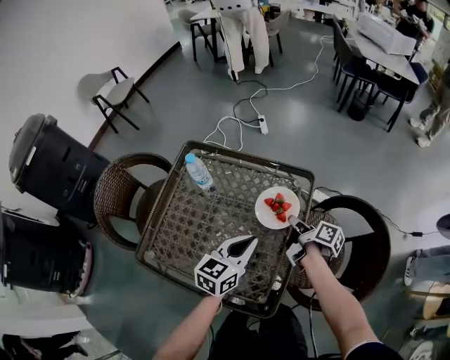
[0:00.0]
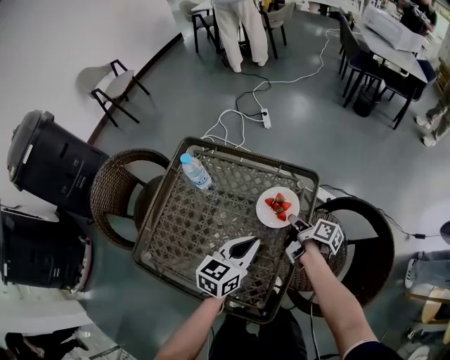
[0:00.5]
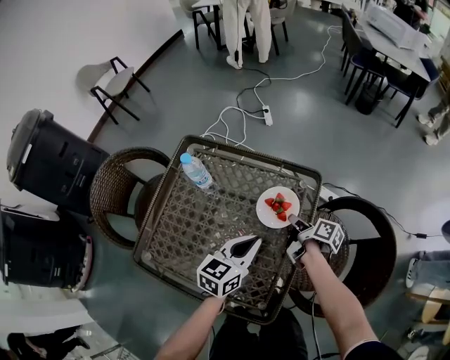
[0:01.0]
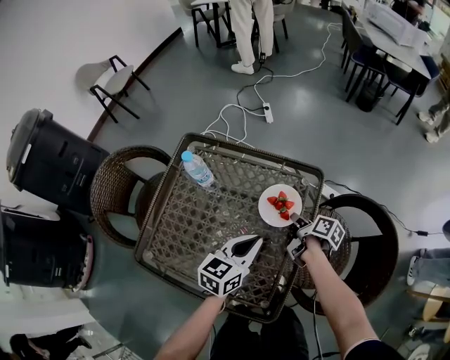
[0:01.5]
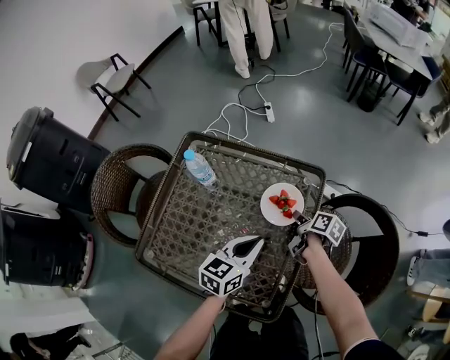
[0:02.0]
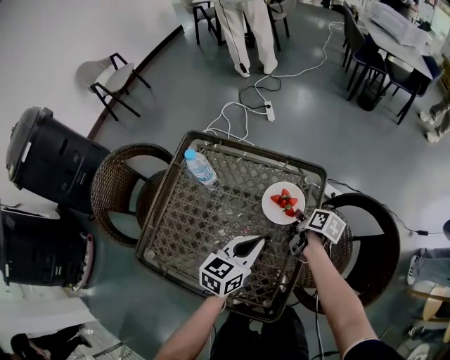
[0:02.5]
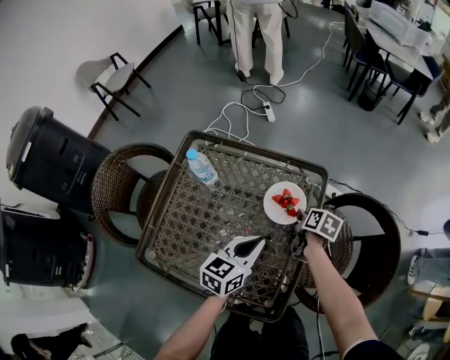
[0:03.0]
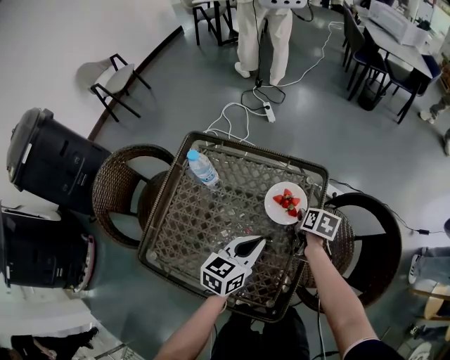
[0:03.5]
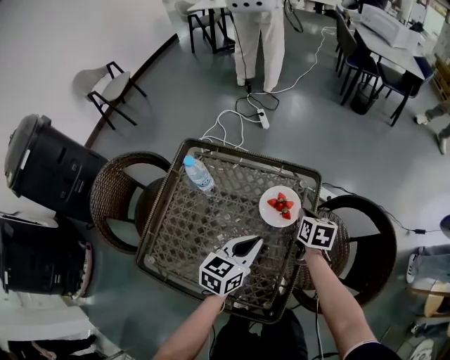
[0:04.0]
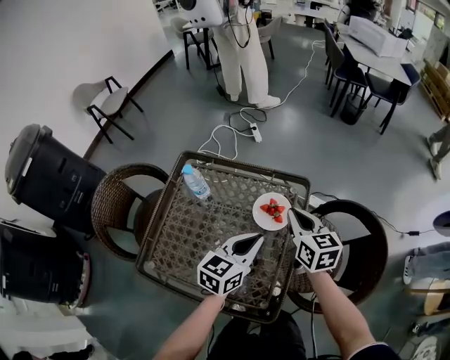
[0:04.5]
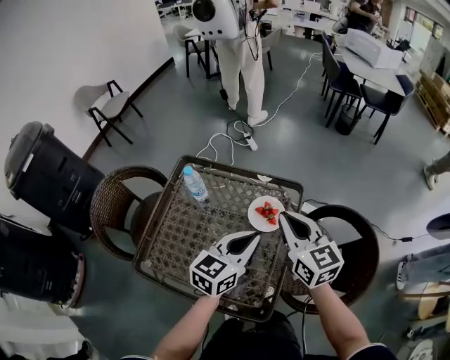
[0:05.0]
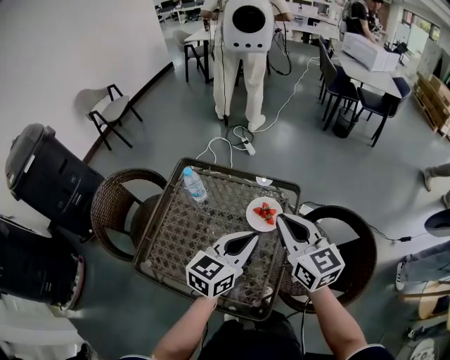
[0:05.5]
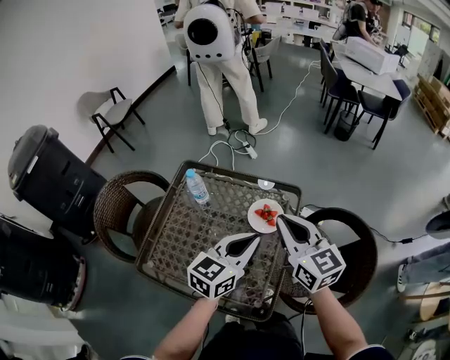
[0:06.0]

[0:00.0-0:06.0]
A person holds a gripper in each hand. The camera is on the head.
0:00.0 to 0:02.0: The right gripper heads downward, covering about 5 cm.
0:02.0 to 0:04.0: The right gripper travels upward by roughly 5 cm, and swivels approximately 40 degrees.
0:04.0 to 0:06.0: The left gripper heads upward, covering roughly 15 cm. Meanwhile the right gripper goes roughly 30 cm upward, and tips its fingers upward by some 40 degrees.

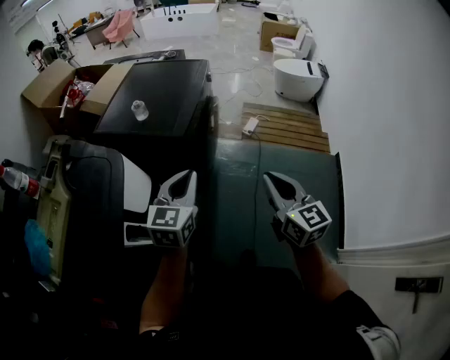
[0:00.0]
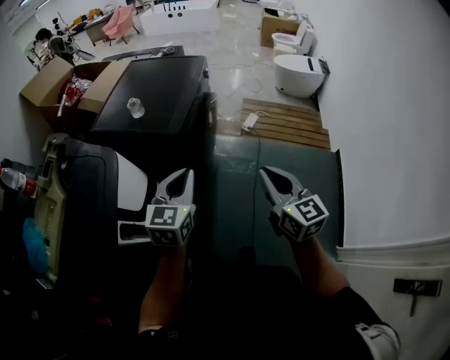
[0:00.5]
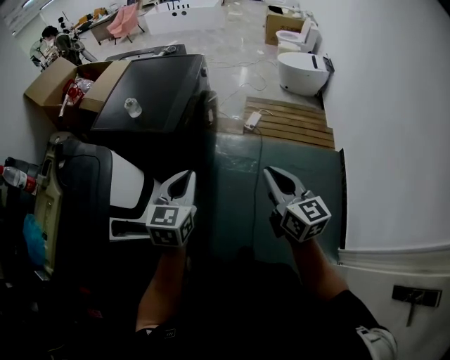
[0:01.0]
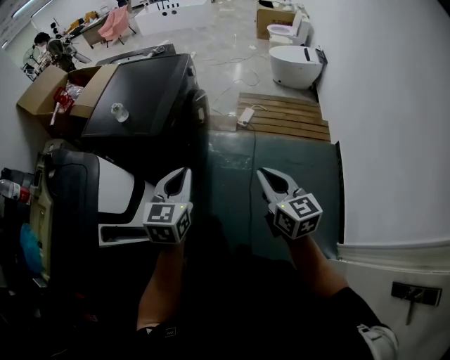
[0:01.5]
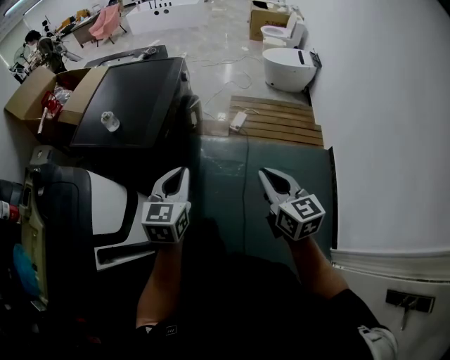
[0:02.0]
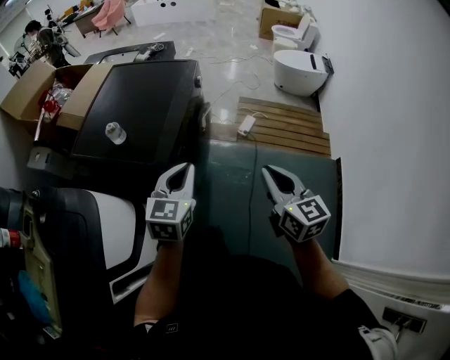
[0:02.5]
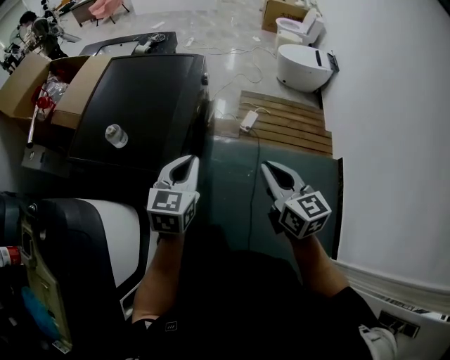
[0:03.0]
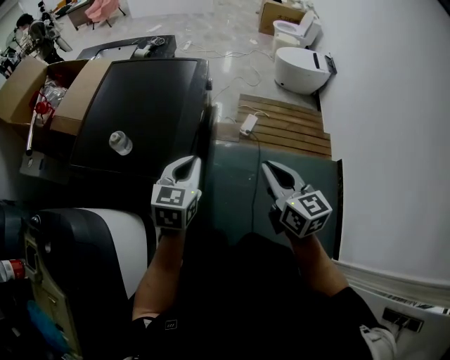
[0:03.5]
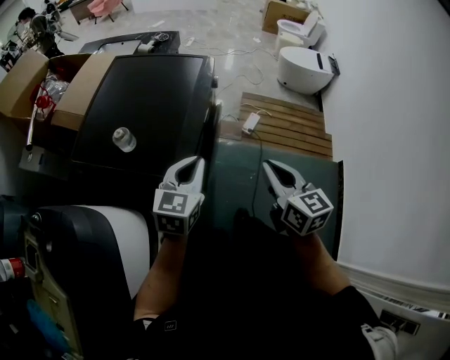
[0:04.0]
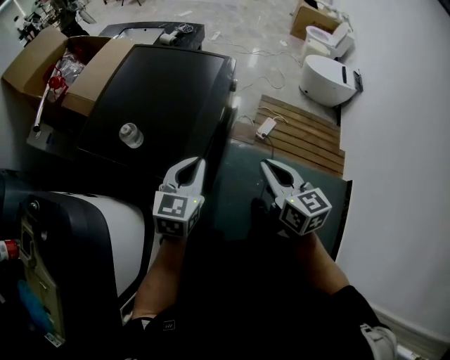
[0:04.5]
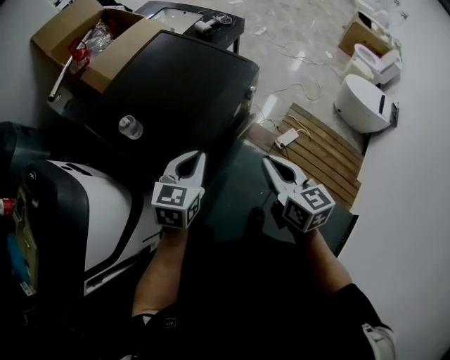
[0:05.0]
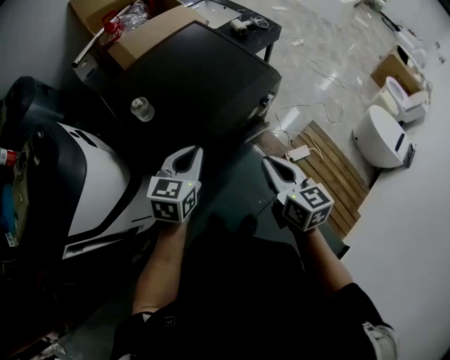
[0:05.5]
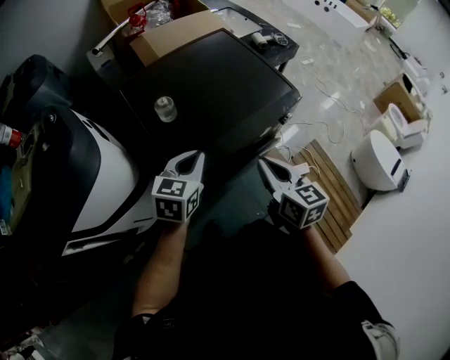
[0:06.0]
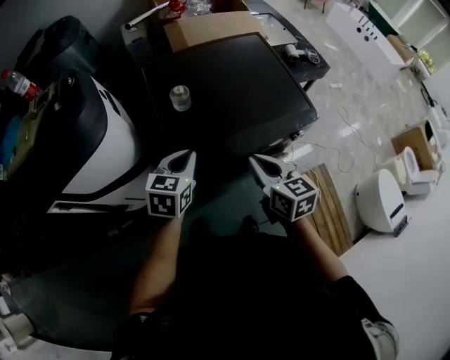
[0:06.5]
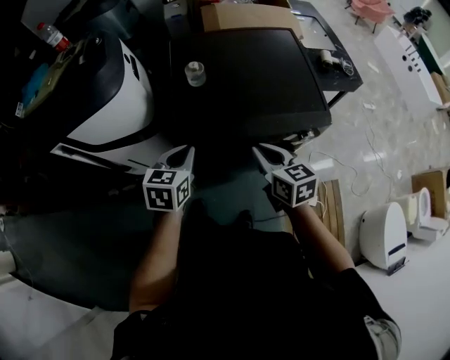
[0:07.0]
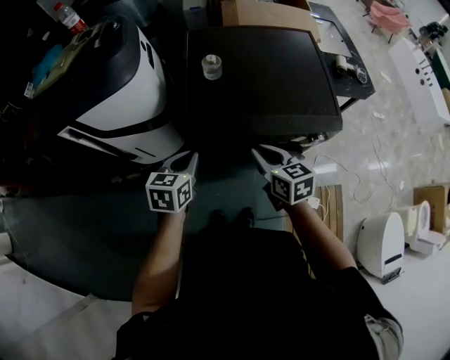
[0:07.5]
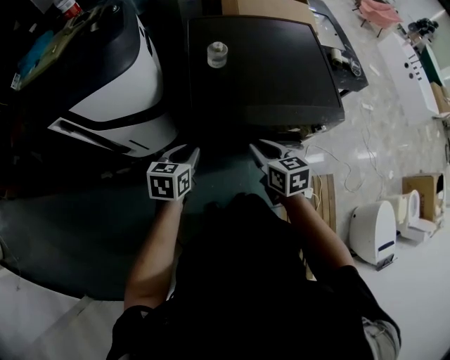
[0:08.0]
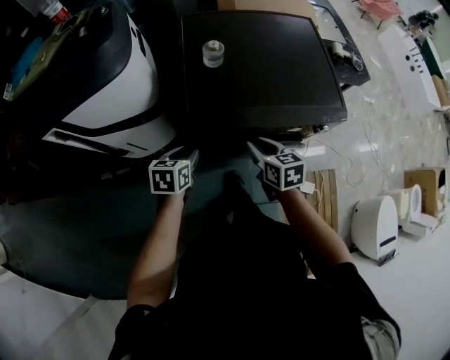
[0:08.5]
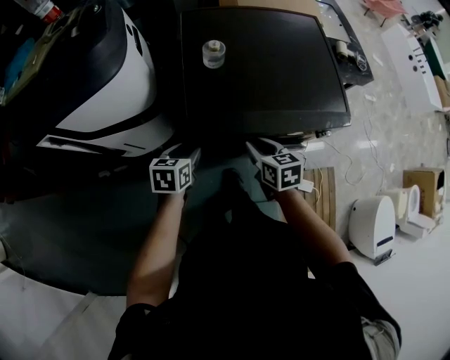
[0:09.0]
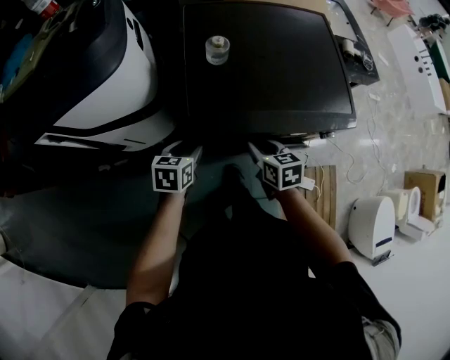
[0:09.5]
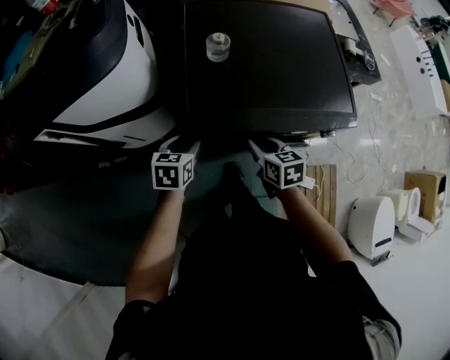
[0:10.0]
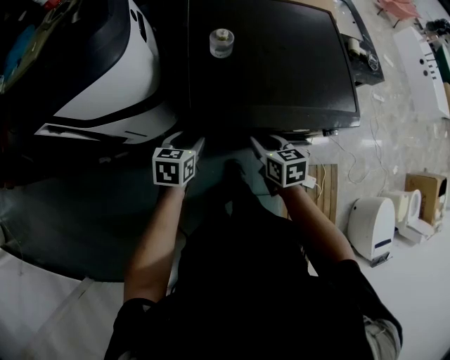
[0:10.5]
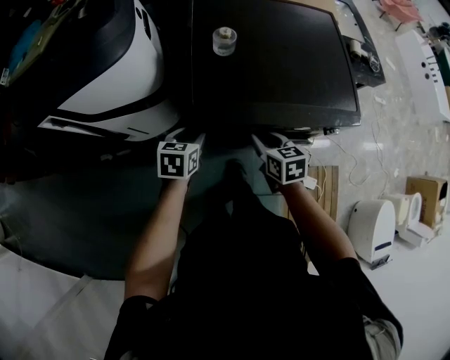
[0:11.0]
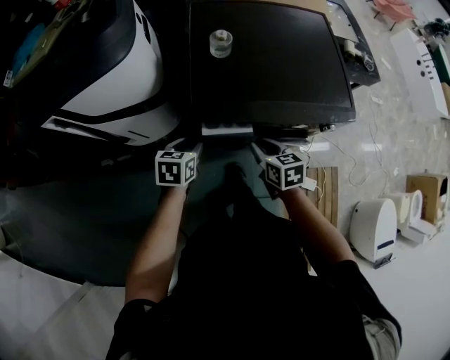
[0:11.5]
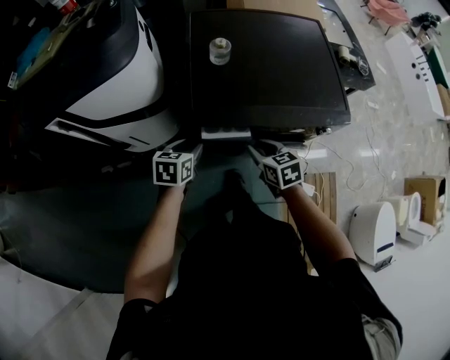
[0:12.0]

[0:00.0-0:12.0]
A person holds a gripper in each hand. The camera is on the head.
0:00.0 to 0:02.0: The right gripper travels to the right, forward and downward by about 15 cm. Meanwhile the left gripper is displaced to the right and forward by approximately 15 cm.
0:02.0 to 0:04.0: Both grippers move forward and to the left, some 25 cm.
0:04.0 to 0:06.0: The left gripper changes place by some 10 cm, and rotates approximately 40 degrees, while the right gripper changes place by approximately 20 cm, and turns by roughly 50 degrees.
0:06.0 to 0:08.0: The right gripper shifts roughly 10 cm downward, and swivels some 40 degrees. Meanwhile the left gripper shifts by approximately 15 cm, and rotates approximately 40 degrees.
0:08.0 to 0:10.0: The right gripper heads downward and forward, covering about 10 cm, while the left gripper is displaced forward and downward by about 10 cm, and opens its fingers.
0:10.0 to 0:12.0: The grippers make only small movements.

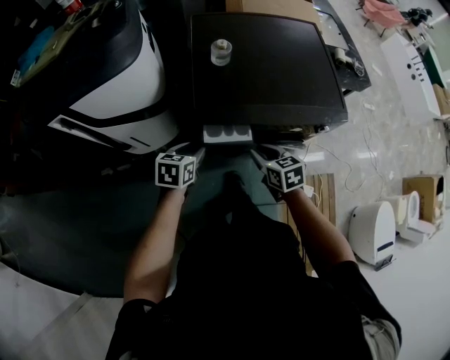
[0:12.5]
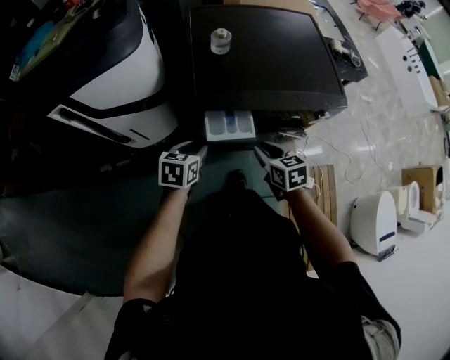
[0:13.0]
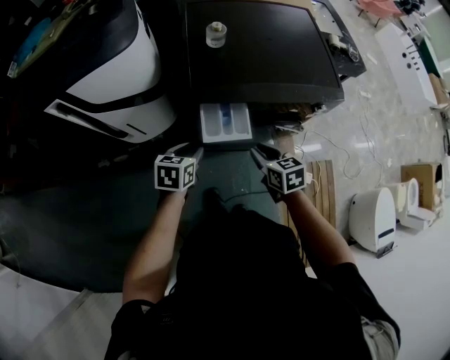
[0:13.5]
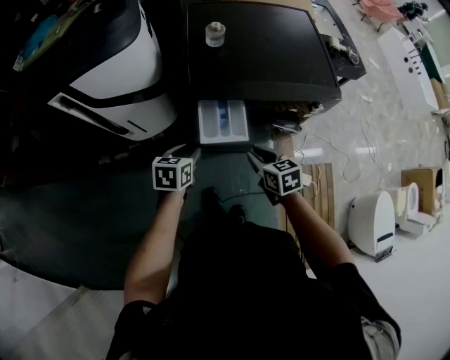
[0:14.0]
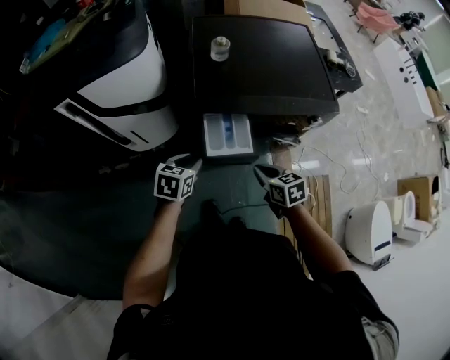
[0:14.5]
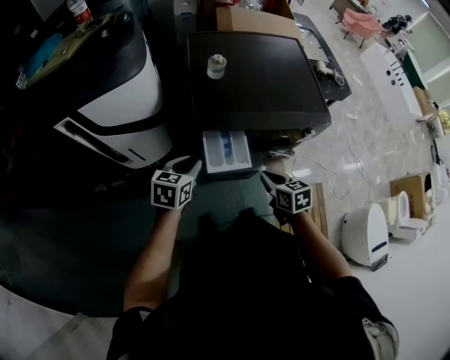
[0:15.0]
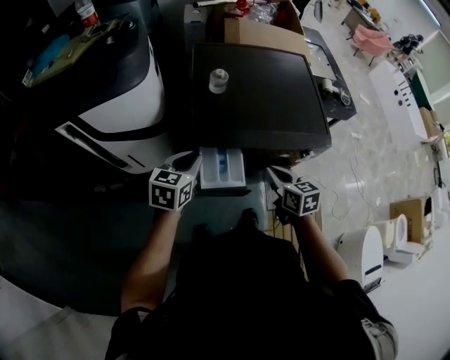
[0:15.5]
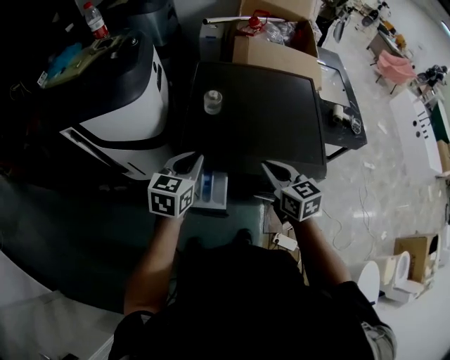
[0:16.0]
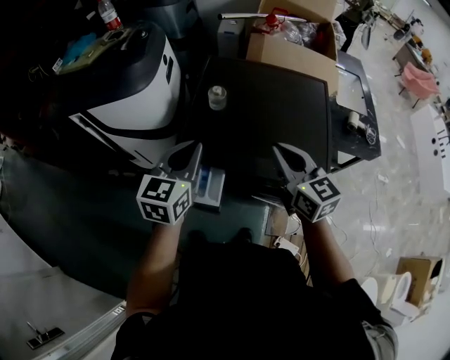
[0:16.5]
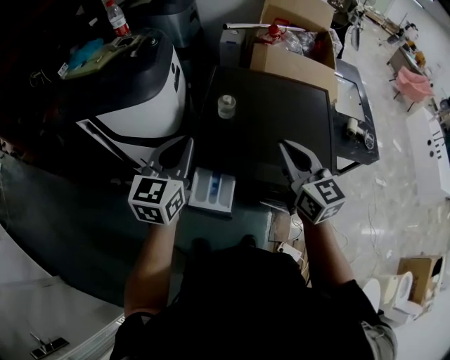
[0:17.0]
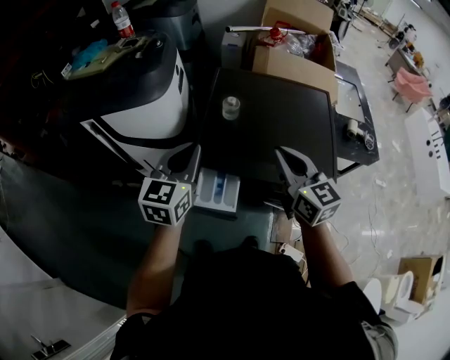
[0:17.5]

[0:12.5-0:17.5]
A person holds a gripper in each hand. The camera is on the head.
0:12.5 to 0:15.0: The left gripper travels upward and backward by about 10 cm. The right gripper goes roughly 10 cm backward, and closes up.
0:15.0 to 0:17.5: The right gripper is displaced upward and forward by roughly 30 cm, and tilts its fingers some 40 degrees upward. The left gripper is displaced upward by some 20 cm, and changes its angle by some 40 degrees.

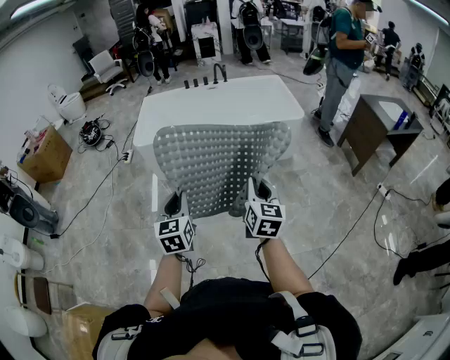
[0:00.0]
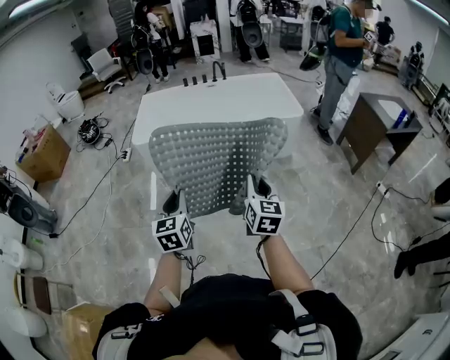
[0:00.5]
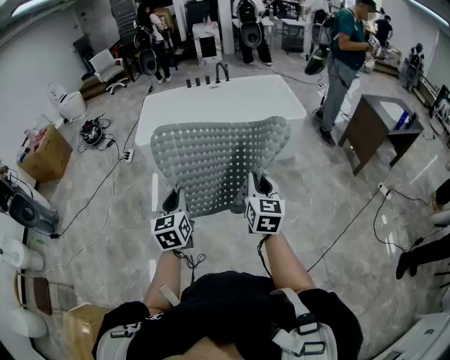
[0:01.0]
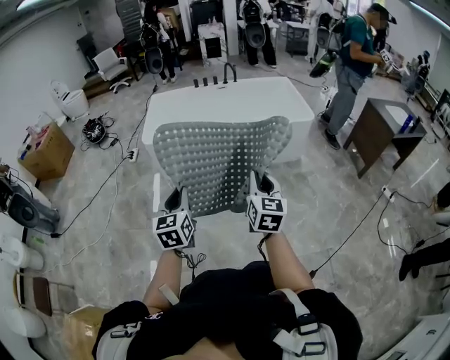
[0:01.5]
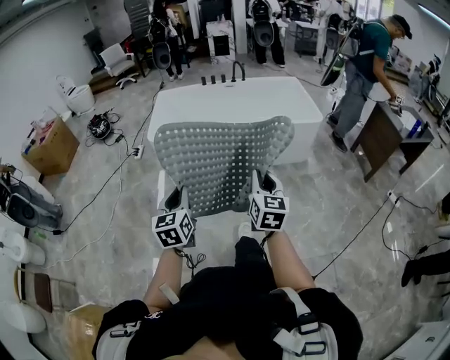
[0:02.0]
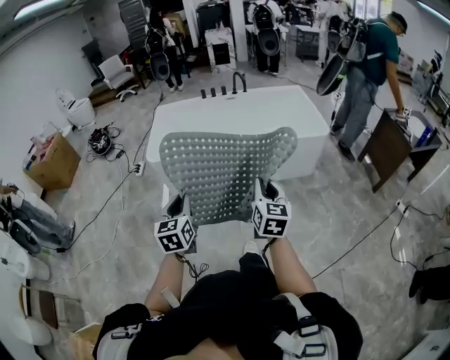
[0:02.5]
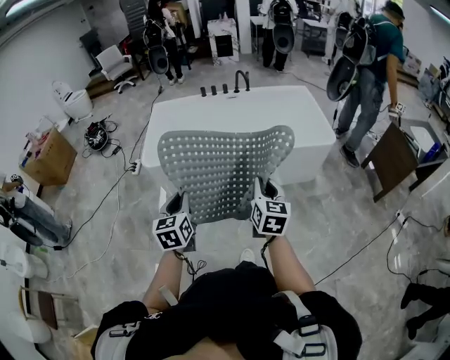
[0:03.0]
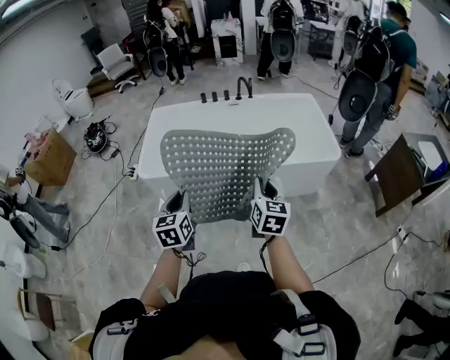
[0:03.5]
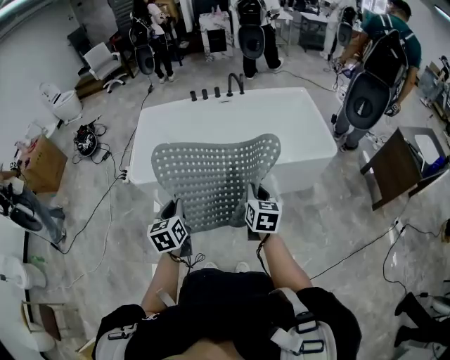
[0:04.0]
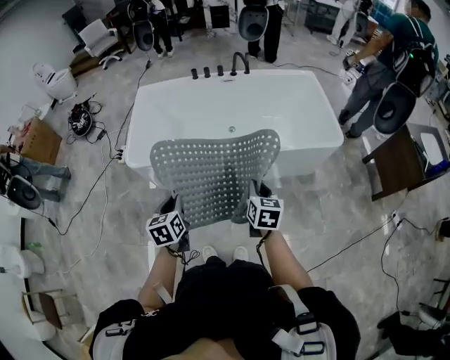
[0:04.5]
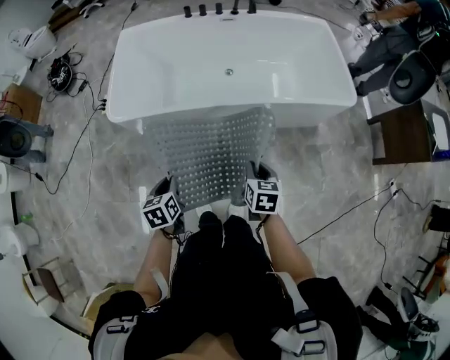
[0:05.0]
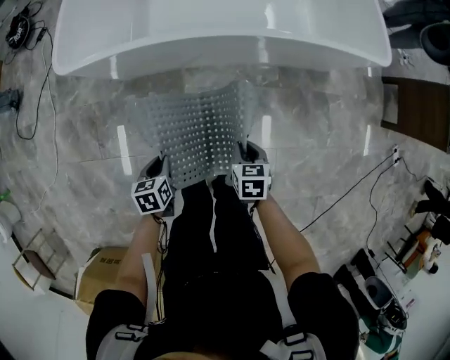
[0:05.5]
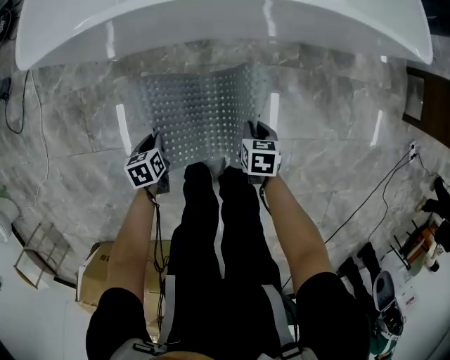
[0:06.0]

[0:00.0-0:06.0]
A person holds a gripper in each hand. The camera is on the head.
0:00.0 to 0:02.0: The left gripper heads to the left, covering about 10 cm; the right gripper moves to the left and forward, about 10 cm.
0:02.0 to 0:04.0: The two grippers go roughly 40 cm forward.
0:04.0 to 0:06.0: The two grippers go some 60 cm downward. The right gripper points its fingers some 40 degrees further downward. The left gripper tips its fingers downward by about 40 degrees.
